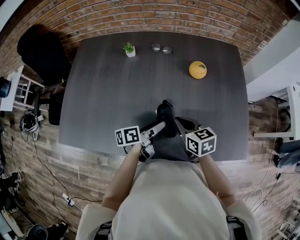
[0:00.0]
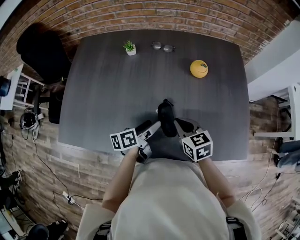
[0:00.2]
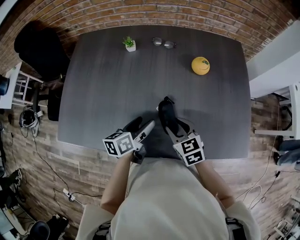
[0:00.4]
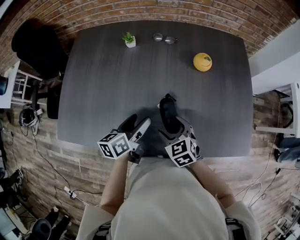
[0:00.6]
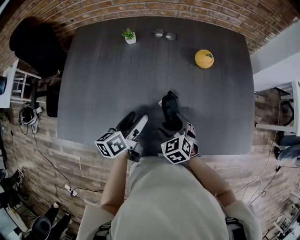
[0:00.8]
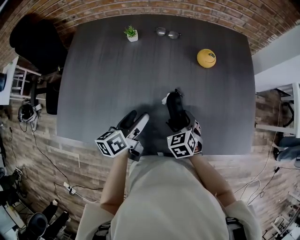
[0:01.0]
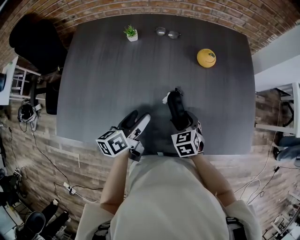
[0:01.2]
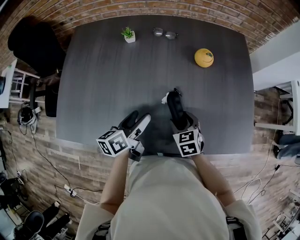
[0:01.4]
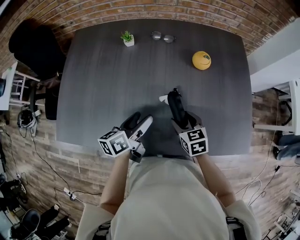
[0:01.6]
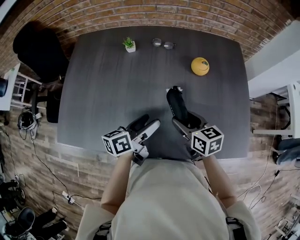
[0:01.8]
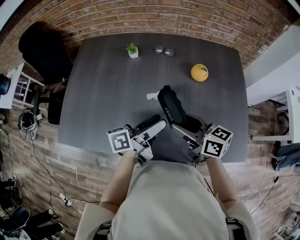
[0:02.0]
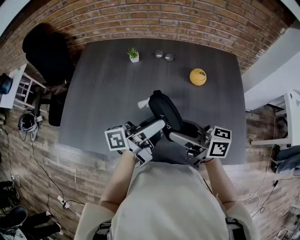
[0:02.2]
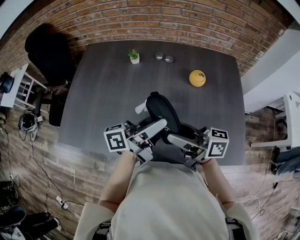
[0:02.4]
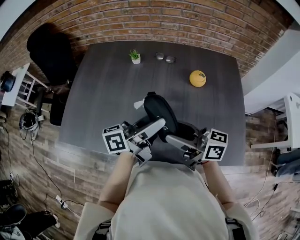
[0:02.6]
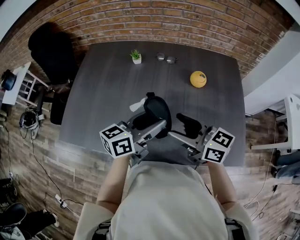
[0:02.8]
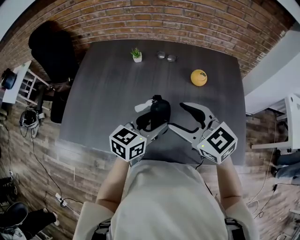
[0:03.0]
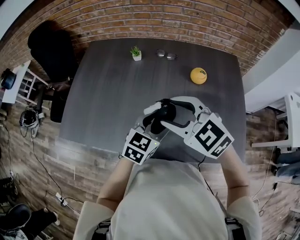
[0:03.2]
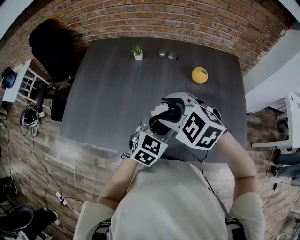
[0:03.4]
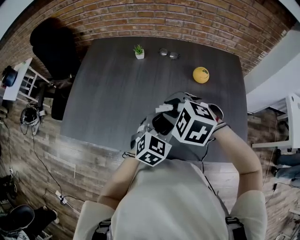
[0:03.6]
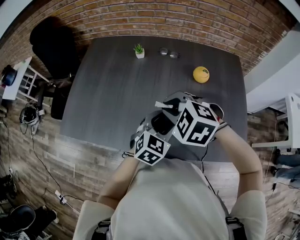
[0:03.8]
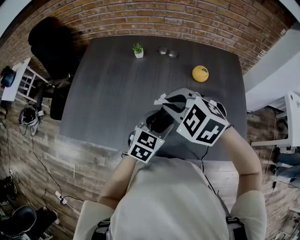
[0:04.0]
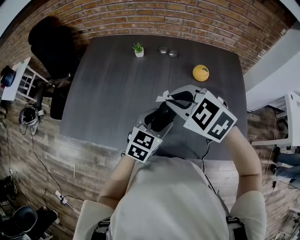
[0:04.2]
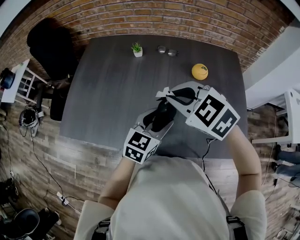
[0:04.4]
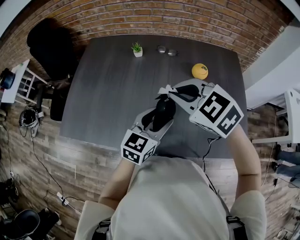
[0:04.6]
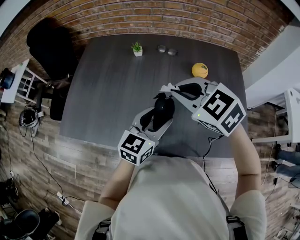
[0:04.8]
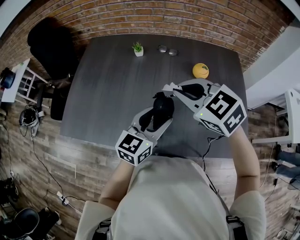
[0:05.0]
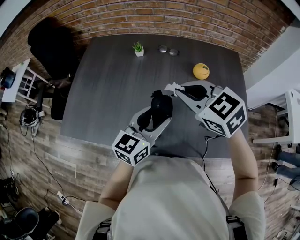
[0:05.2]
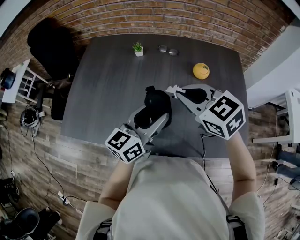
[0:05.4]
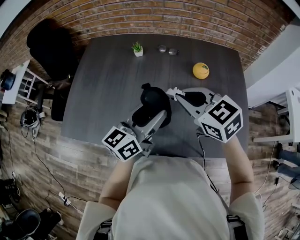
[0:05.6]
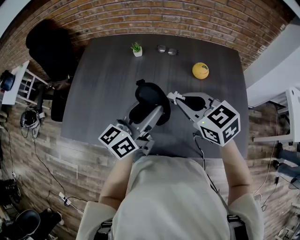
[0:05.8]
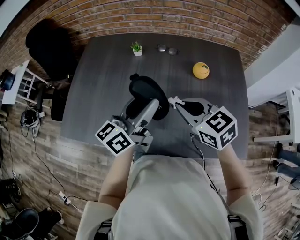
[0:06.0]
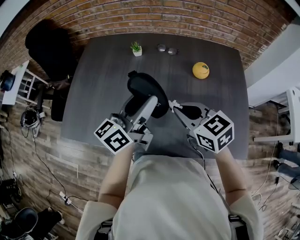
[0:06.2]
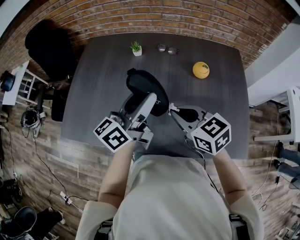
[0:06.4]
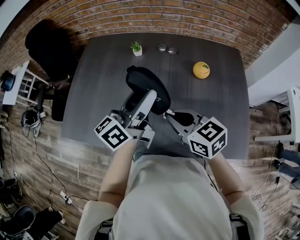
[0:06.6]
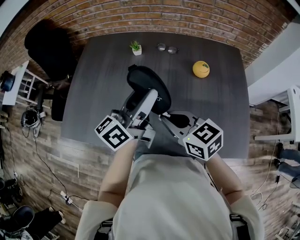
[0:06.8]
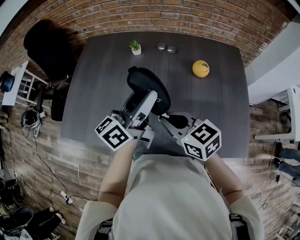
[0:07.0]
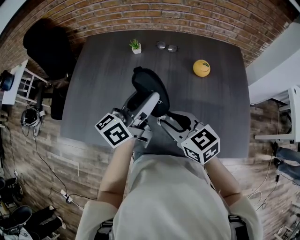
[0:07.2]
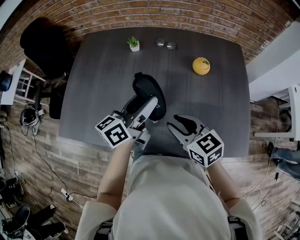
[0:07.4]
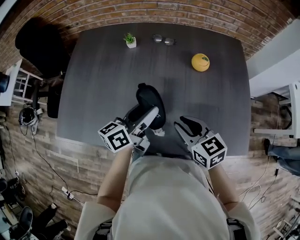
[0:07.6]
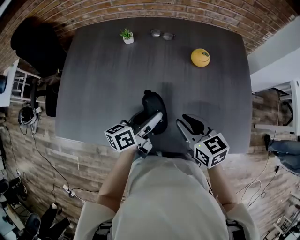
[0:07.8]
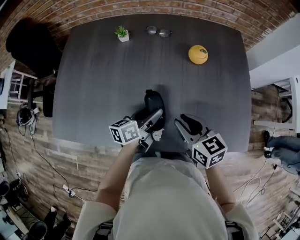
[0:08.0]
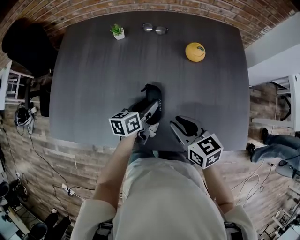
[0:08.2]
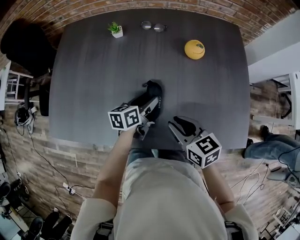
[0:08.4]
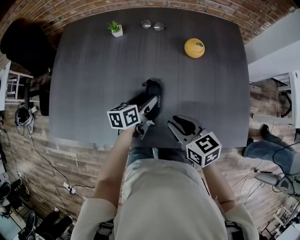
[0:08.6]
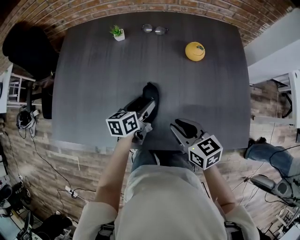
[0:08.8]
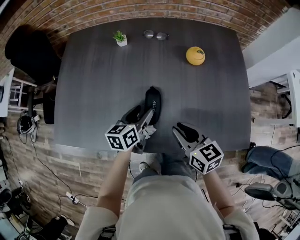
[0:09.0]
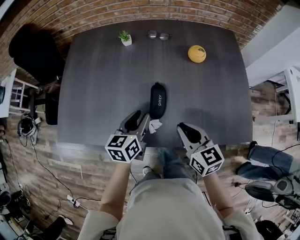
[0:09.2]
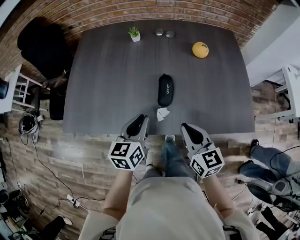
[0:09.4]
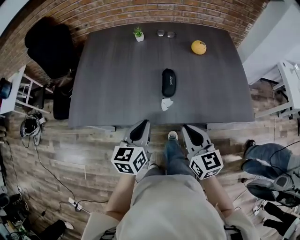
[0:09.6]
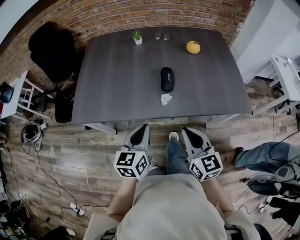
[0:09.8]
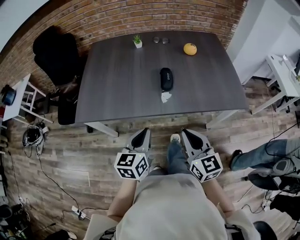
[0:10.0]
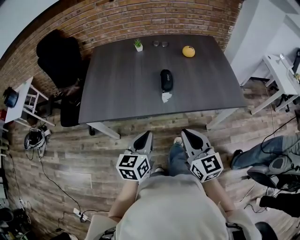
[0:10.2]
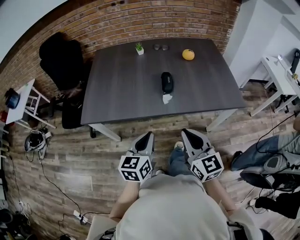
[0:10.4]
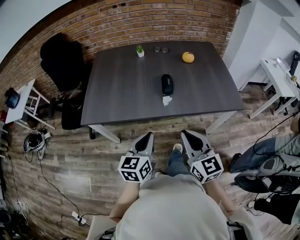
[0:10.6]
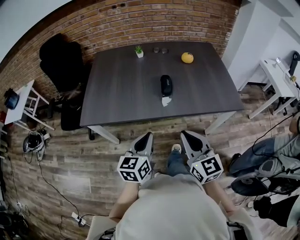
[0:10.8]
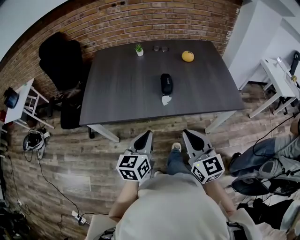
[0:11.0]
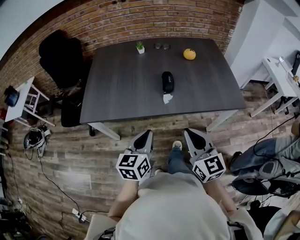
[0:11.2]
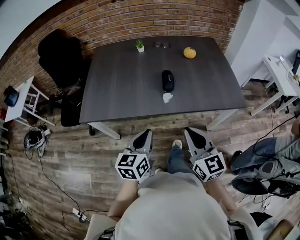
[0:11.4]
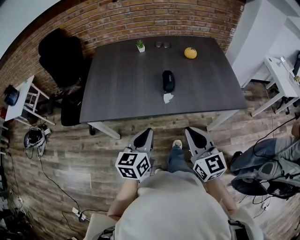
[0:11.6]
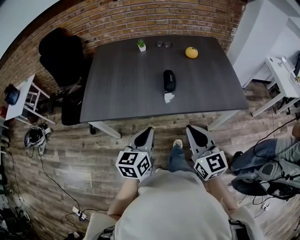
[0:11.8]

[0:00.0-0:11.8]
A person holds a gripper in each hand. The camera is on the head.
0:00.0 to 0:01.4: The right gripper travels downward by approximately 10 cm, changes its angle by roughly 30 degrees, and opens, while the left gripper travels to the left by some 10 cm, and turns by some 20 degrees.
0:01.4 to 0:03.0: The left gripper is displaced upward and to the right by roughly 15 cm, and changes its angle by roughly 40 degrees. The right gripper shifts about 25 cm upward, and turns by about 40 degrees.
0:03.0 to 0:04.4: The right gripper turns by roughly 30 degrees, and closes.
0:04.4 to 0:06.0: The left gripper moves upward and to the left, roughly 10 cm, and angles its fingers upward, by approximately 30 degrees. Meanwhile the right gripper ends up about 5 cm from where it was, and changes its angle by about 30 degrees.
0:06.0 to 0:07.4: The grippers both shift downward by approximately 5 cm.
0:07.4 to 0:08.8: The left gripper moves downward, approximately 20 cm, and tilts its fingers approximately 30 degrees downward. Meanwhile the right gripper travels downward by approximately 5 cm.
0:08.8 to 0:10.4: The grippers both shift backward and upward by approximately 40 cm. The left gripper swivels roughly 30 degrees, and closes its fingers. The right gripper rotates some 40 degrees.
0:10.4 to 0:11.8: The grippers move only a little.

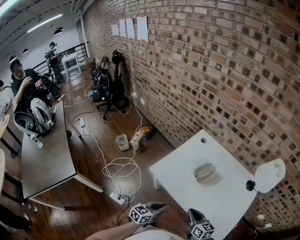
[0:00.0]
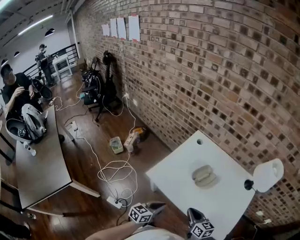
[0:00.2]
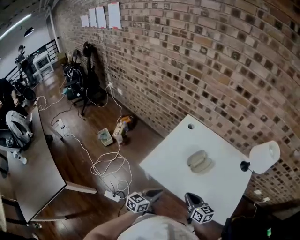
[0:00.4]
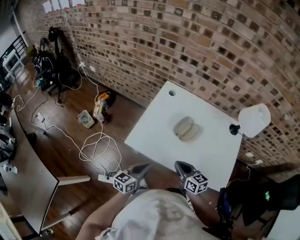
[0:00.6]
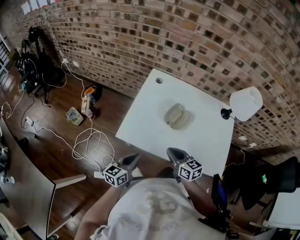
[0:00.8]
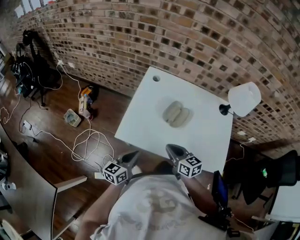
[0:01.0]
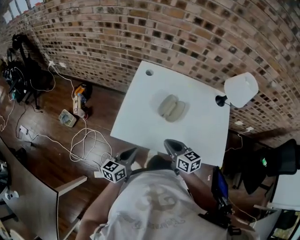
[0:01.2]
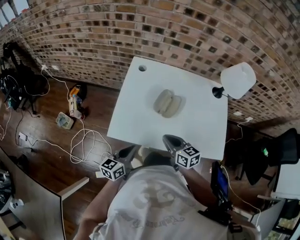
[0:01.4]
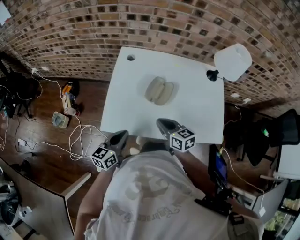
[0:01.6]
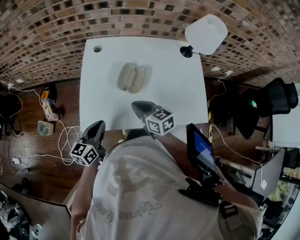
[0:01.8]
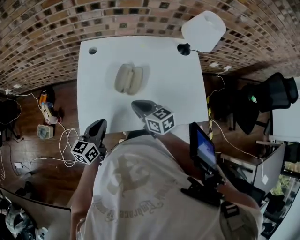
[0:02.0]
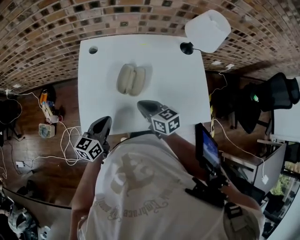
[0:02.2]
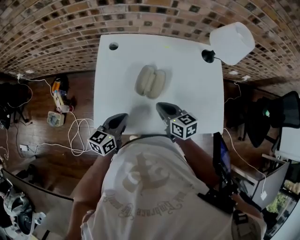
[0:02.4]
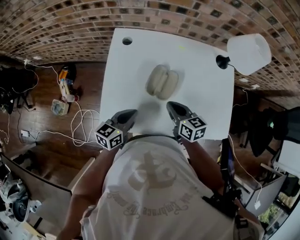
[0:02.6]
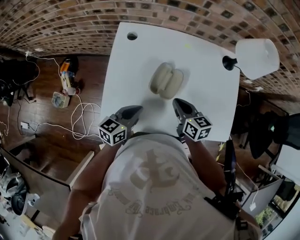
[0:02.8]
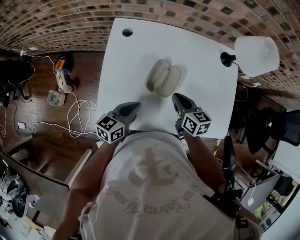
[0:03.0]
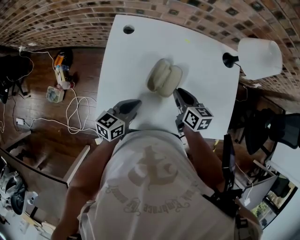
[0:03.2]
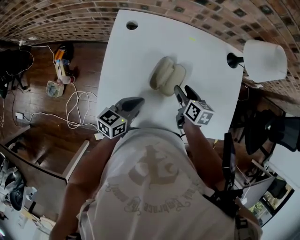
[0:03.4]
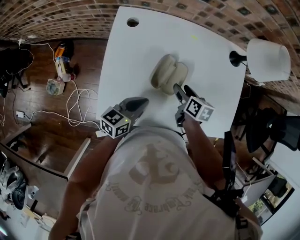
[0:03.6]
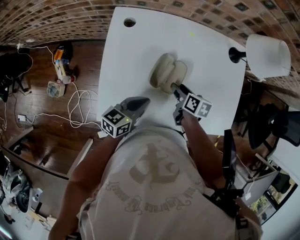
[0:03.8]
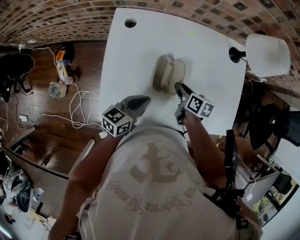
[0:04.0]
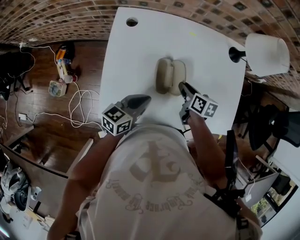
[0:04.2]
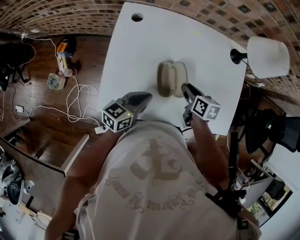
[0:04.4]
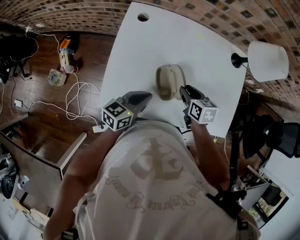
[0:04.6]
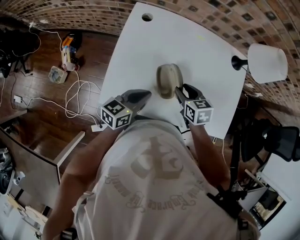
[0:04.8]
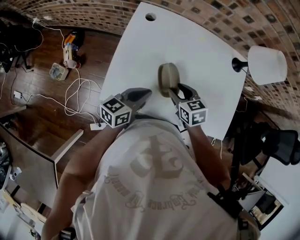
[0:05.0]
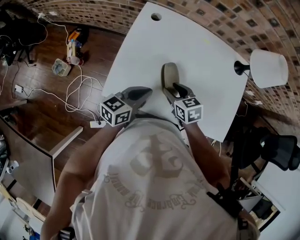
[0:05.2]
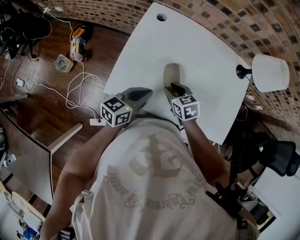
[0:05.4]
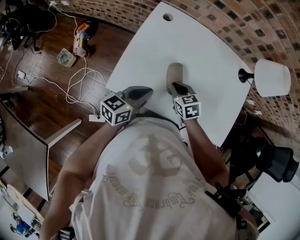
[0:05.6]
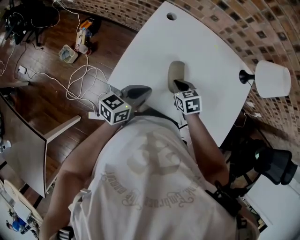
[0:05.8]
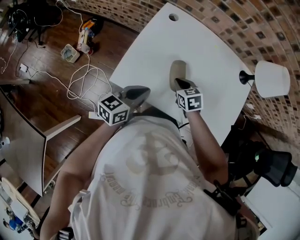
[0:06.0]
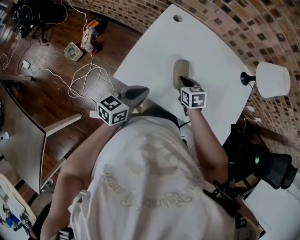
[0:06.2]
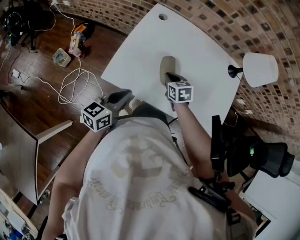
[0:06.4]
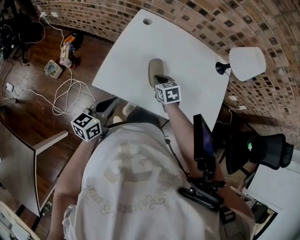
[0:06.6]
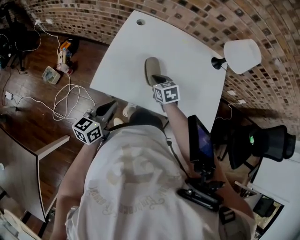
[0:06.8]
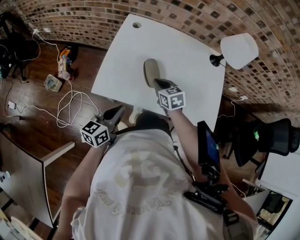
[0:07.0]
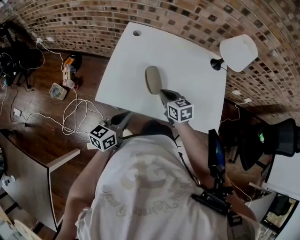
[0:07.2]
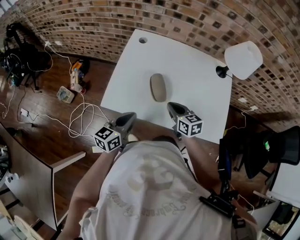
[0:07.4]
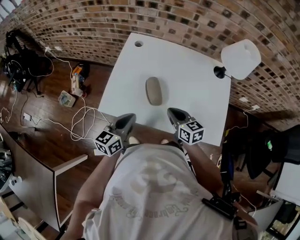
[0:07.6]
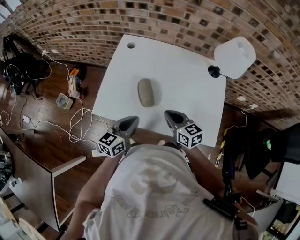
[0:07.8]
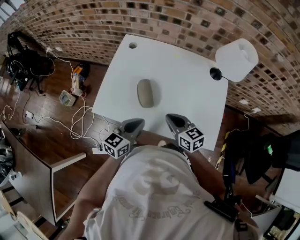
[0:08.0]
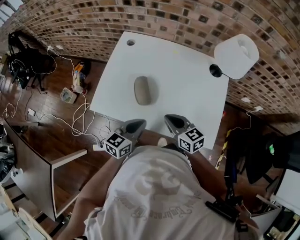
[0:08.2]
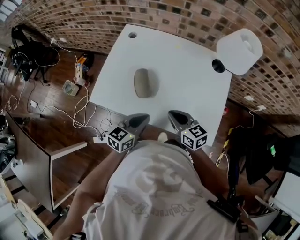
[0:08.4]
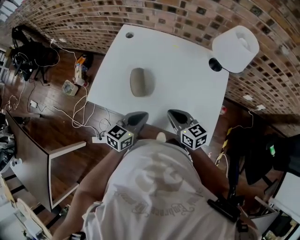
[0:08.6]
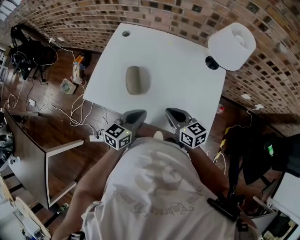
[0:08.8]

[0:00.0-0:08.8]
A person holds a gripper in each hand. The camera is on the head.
0:00.0 to 0:01.4: The right gripper heads forward and to the left, covering about 15 cm. The left gripper travels to the left and forward by approximately 15 cm.
0:01.4 to 0:03.0: The left gripper moves forward, roughly 15 cm. The right gripper goes roughly 15 cm forward and to the right.
0:03.0 to 0:04.4: The right gripper is displaced downward by some 5 cm, and opens up.
0:04.4 to 0:05.8: The right gripper is displaced to the left by about 10 cm, rotates around the line of its fingers by approximately 50 degrees, counterclockwise from behind, and closes up, while the left gripper goes roughly 5 cm backward.
0:05.8 to 0:07.4: The right gripper goes some 10 cm backward, upward and to the right, and swivels approximately 30 degrees; the left gripper goes about 5 cm backward.
0:07.4 to 0:08.8: The right gripper goes roughly 15 cm to the right and backward. The left gripper travels to the right by roughly 20 cm.

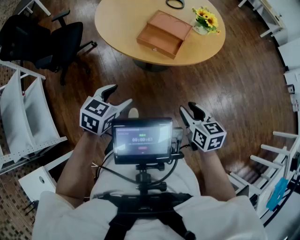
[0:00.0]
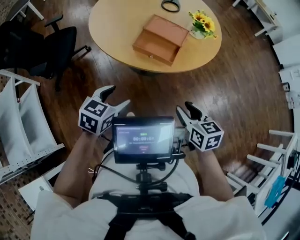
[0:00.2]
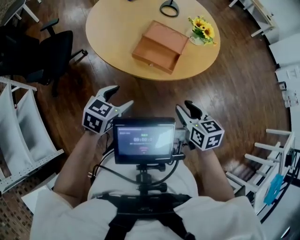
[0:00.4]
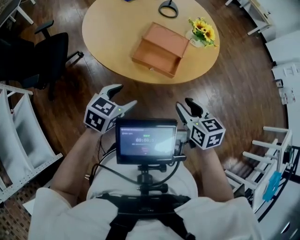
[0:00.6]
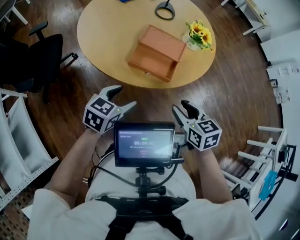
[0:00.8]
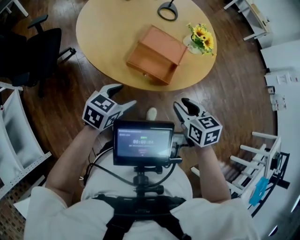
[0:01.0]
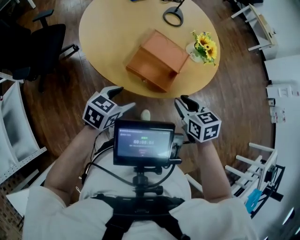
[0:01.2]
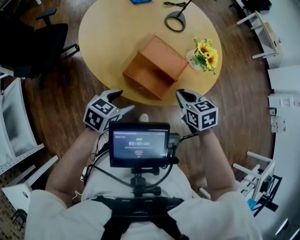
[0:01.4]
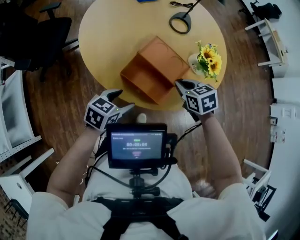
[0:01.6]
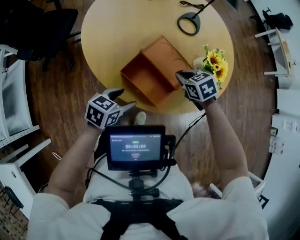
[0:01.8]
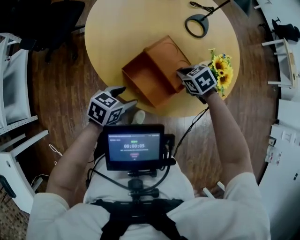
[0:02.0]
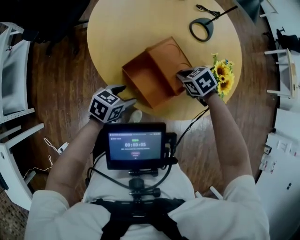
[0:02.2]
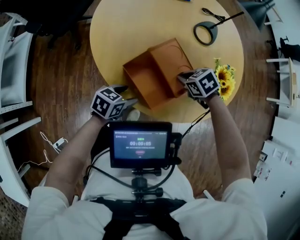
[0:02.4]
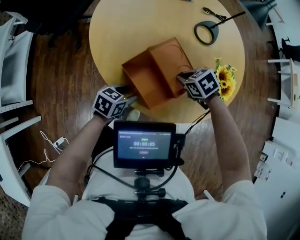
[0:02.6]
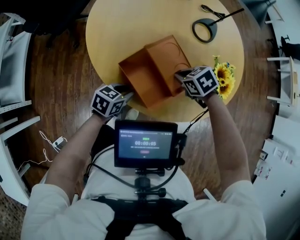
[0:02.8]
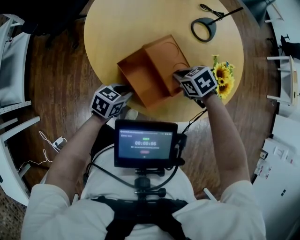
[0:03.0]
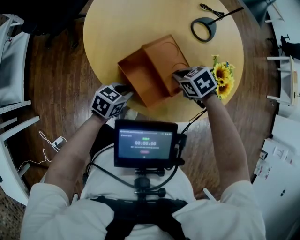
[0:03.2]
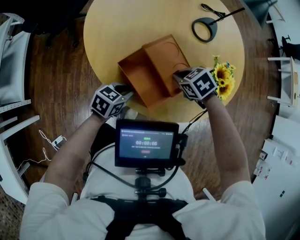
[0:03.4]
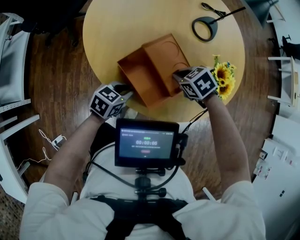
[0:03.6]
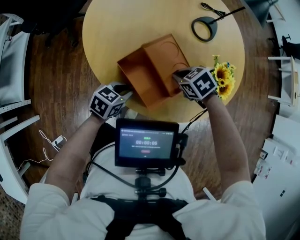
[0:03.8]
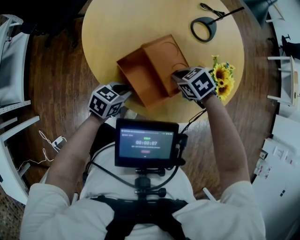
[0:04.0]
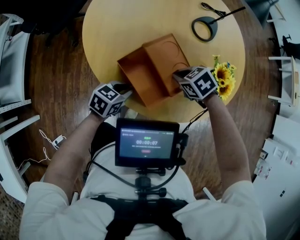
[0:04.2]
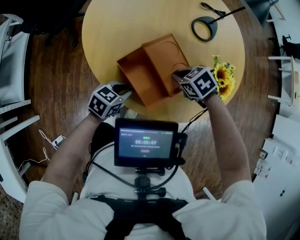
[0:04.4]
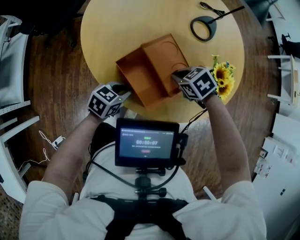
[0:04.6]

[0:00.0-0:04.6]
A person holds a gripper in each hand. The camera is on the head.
0:00.0 to 0:01.6: The right gripper is displaced forward by approximately 35 cm, rotates about 30 degrees, and closes; the left gripper heads forward, covering about 25 cm.
0:01.6 to 0:03.0: Both grippers travel together downward, some 10 cm. The left gripper closes up, while the right gripper turns by roughly 30 degrees.
0:03.0 to 0:04.6: The grippers move only a little.
